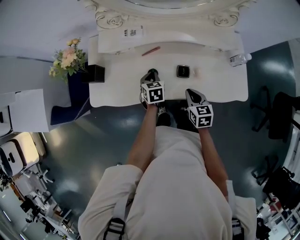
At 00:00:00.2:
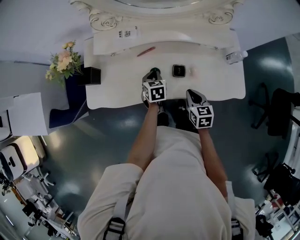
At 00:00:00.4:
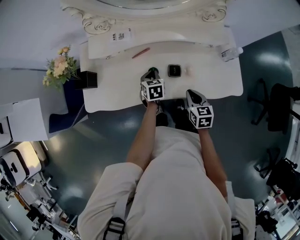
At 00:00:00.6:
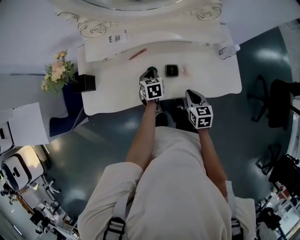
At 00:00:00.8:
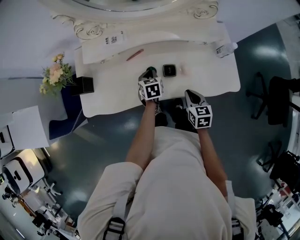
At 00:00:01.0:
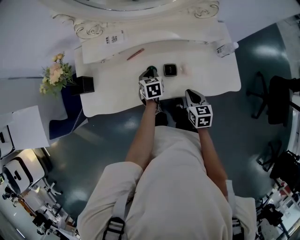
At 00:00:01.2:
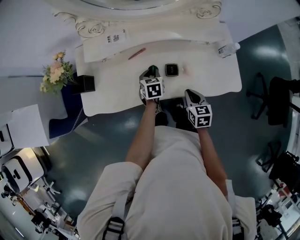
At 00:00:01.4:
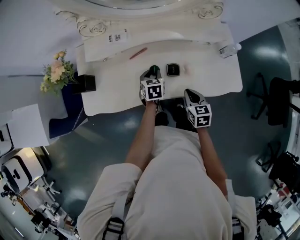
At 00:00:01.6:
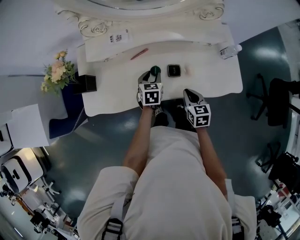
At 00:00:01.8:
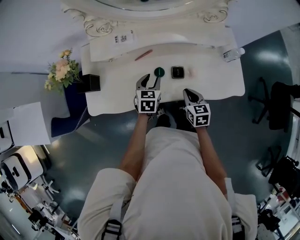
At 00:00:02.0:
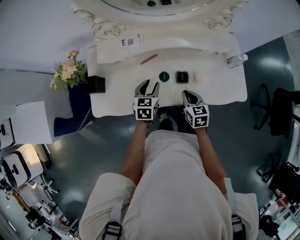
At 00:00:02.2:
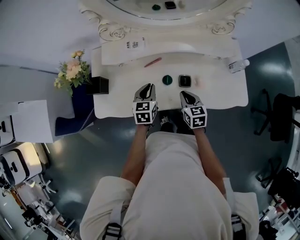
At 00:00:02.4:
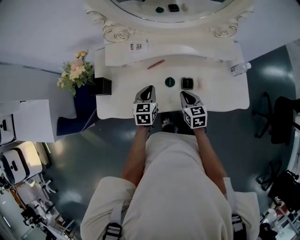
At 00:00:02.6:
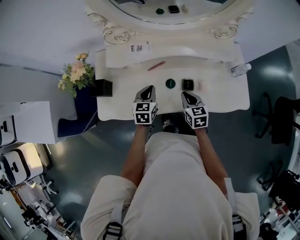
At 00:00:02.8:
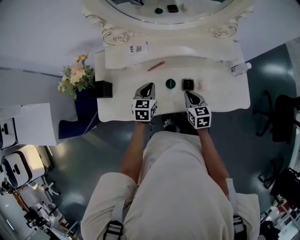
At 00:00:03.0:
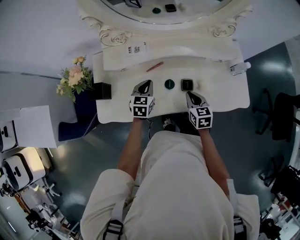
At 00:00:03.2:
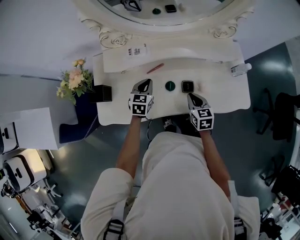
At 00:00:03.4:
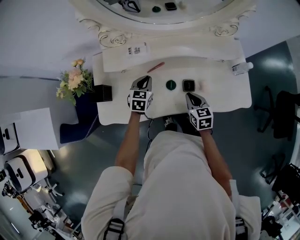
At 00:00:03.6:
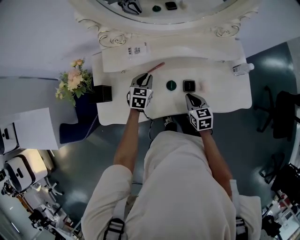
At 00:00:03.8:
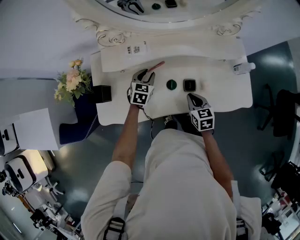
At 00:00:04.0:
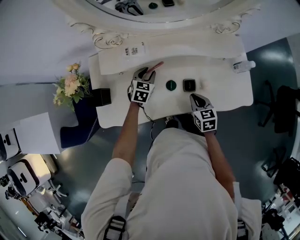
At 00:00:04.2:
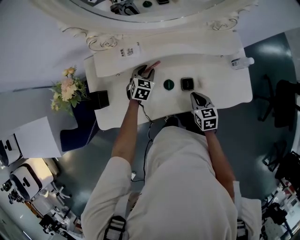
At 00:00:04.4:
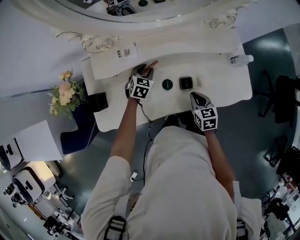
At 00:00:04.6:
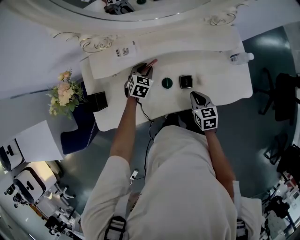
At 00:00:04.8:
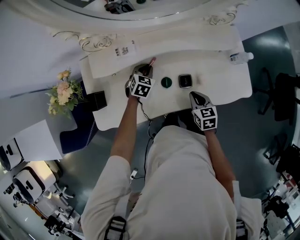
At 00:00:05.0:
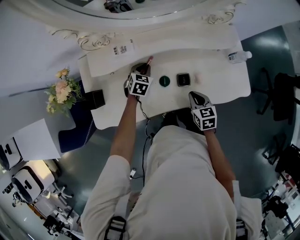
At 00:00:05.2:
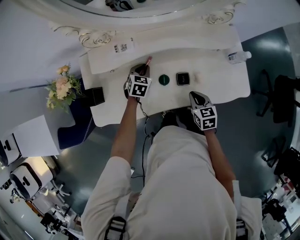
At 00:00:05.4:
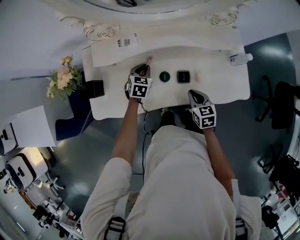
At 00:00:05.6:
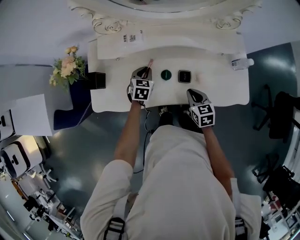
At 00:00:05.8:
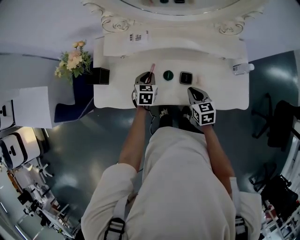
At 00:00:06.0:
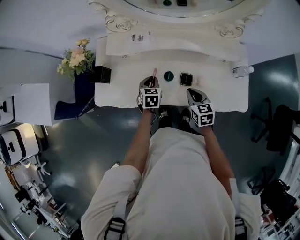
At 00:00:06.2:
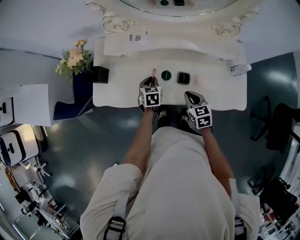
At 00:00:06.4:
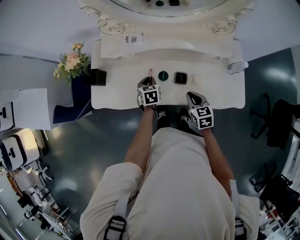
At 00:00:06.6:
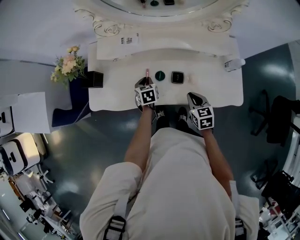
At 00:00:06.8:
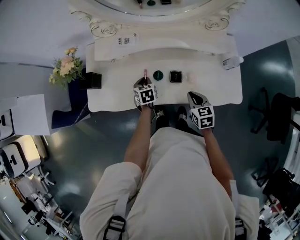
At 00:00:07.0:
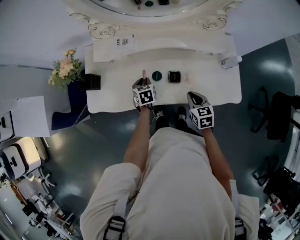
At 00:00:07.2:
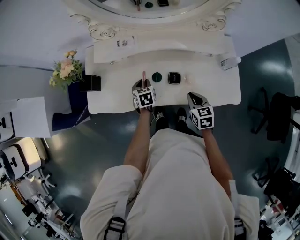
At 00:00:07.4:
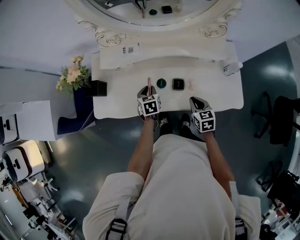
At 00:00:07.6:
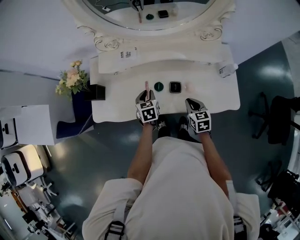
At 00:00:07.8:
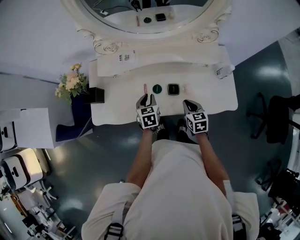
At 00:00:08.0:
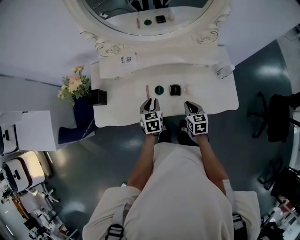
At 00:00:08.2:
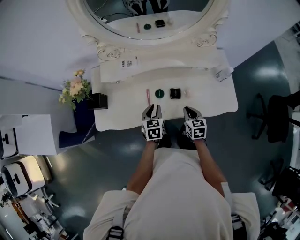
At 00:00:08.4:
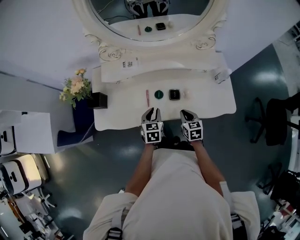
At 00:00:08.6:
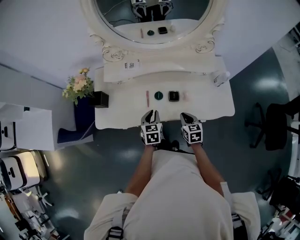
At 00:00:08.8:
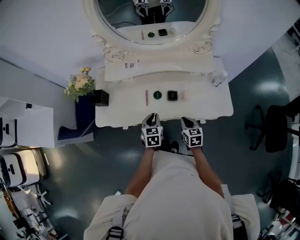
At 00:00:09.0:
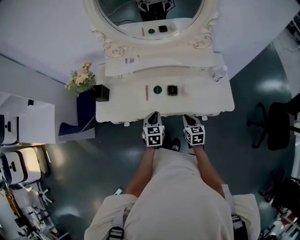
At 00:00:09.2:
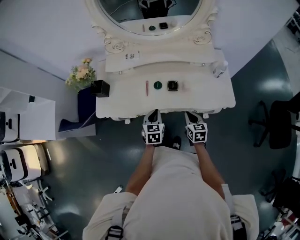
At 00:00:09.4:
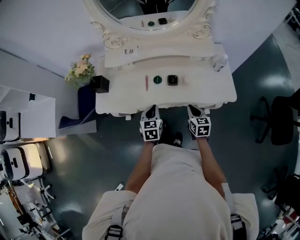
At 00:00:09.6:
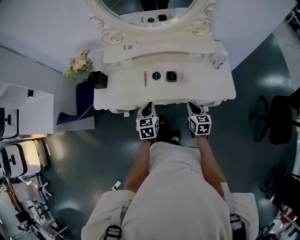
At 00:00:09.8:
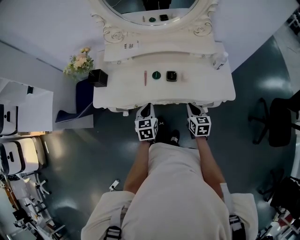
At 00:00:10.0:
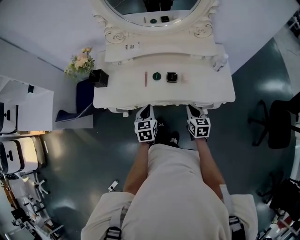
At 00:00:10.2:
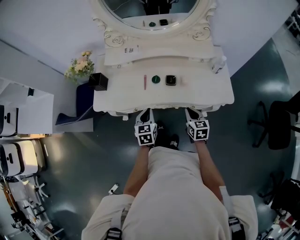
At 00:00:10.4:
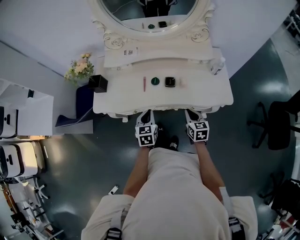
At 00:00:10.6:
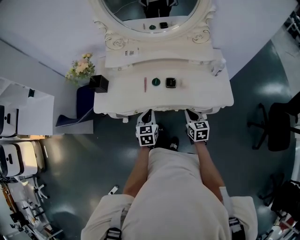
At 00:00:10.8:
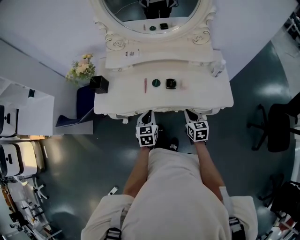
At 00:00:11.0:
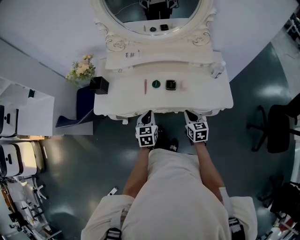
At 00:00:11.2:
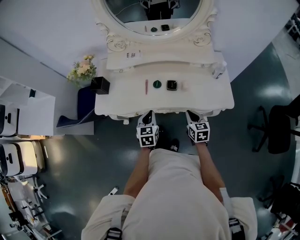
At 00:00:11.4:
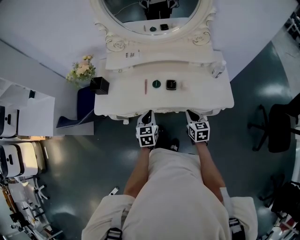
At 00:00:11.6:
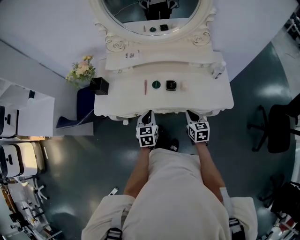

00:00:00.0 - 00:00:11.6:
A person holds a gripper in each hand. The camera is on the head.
00:00:00.0 - 00:00:01.4: The left gripper travels to the right by roughly 5 cm.
00:00:01.4 - 00:00:02.8: The right gripper travels to the left and forward by roughly 10 cm, while the left gripper moves to the left and upward, about 10 cm.
00:00:02.8 - 00:00:04.4: The left gripper heads forward and downward, covering approximately 15 cm, rotates about 30 degrees, and opens up. The right gripper changes place by approximately 5 cm.
00:00:04.4 - 00:00:05.8: The left gripper heads backward, covering roughly 10 cm, and changes its angle by approximately 30 degrees.
00:00:05.8 - 00:00:07.2: The right gripper shifts by some 5 cm.
00:00:07.2 - 00:00:08.8: The left gripper shifts approximately 15 cm backward and upward. Meanwhile the right gripper moves backward, some 5 cm.
00:00:08.8 - 00:00:10.2: The grippers both shift backward by approximately 5 cm.
00:00:10.2 - 00:00:11.6: There are only small adjustments of the grippers.

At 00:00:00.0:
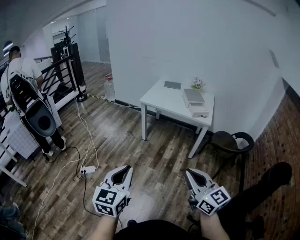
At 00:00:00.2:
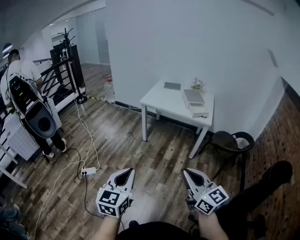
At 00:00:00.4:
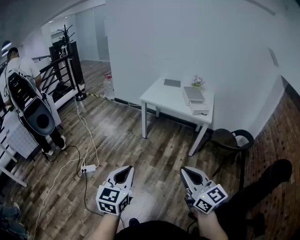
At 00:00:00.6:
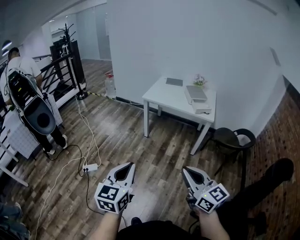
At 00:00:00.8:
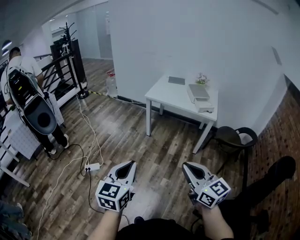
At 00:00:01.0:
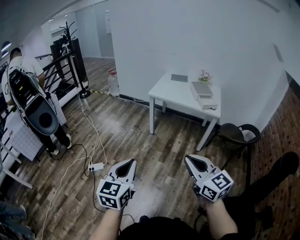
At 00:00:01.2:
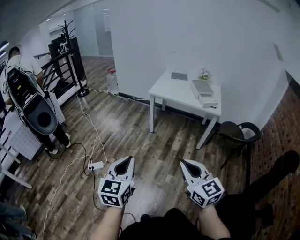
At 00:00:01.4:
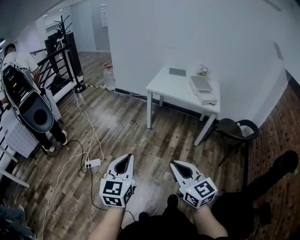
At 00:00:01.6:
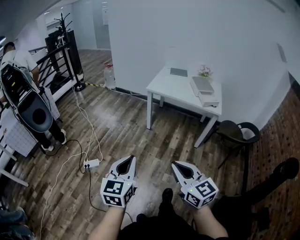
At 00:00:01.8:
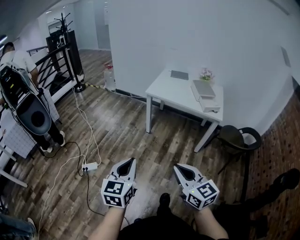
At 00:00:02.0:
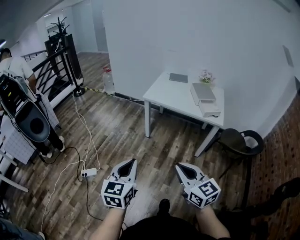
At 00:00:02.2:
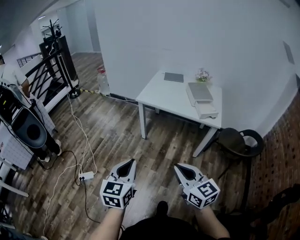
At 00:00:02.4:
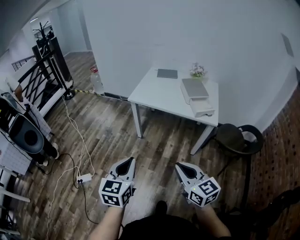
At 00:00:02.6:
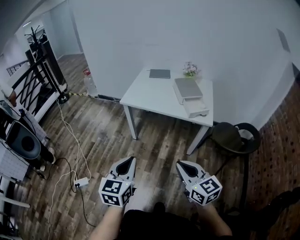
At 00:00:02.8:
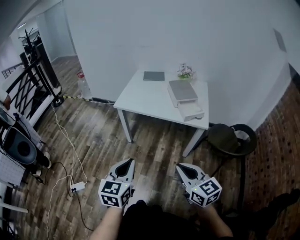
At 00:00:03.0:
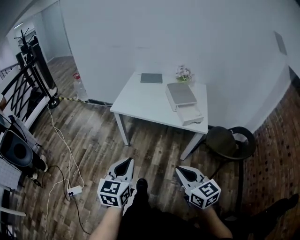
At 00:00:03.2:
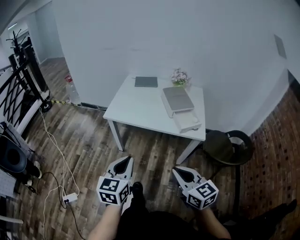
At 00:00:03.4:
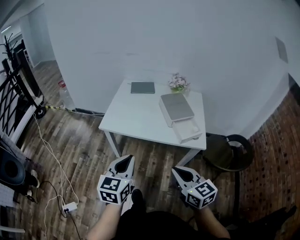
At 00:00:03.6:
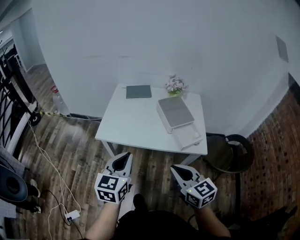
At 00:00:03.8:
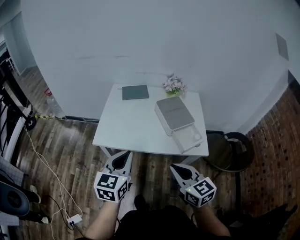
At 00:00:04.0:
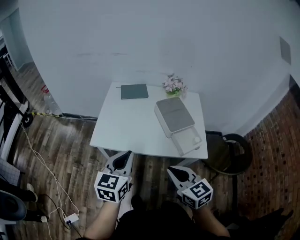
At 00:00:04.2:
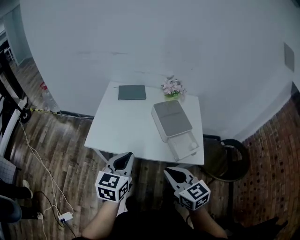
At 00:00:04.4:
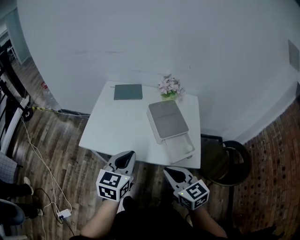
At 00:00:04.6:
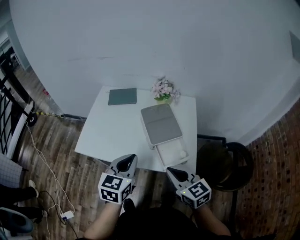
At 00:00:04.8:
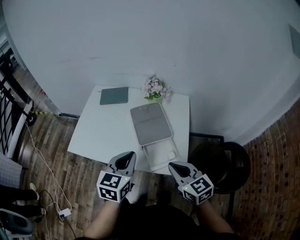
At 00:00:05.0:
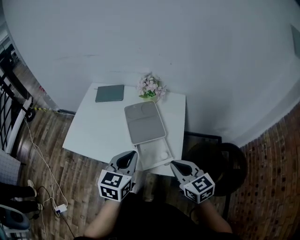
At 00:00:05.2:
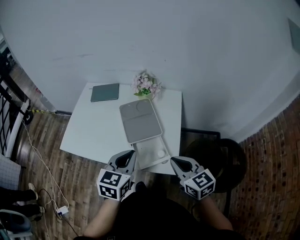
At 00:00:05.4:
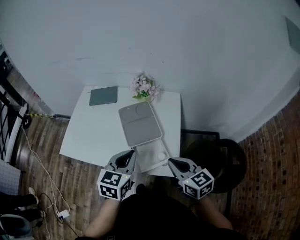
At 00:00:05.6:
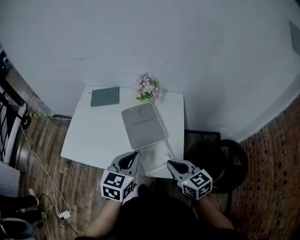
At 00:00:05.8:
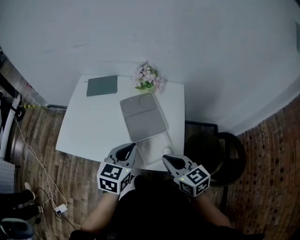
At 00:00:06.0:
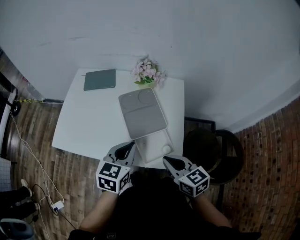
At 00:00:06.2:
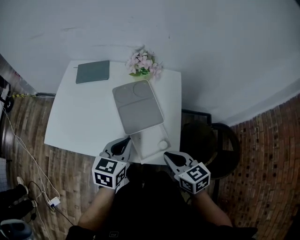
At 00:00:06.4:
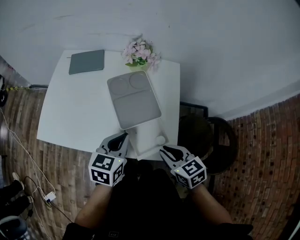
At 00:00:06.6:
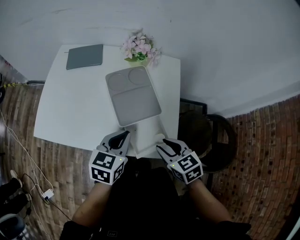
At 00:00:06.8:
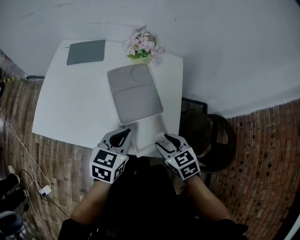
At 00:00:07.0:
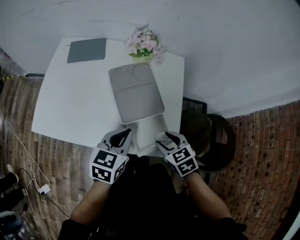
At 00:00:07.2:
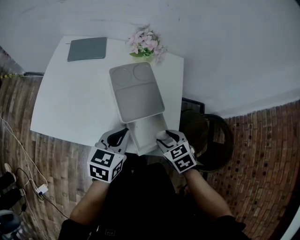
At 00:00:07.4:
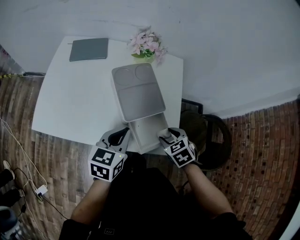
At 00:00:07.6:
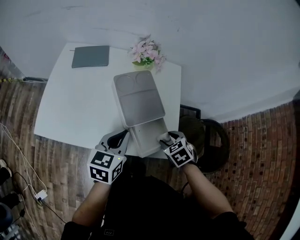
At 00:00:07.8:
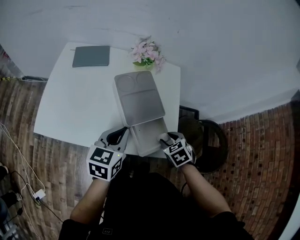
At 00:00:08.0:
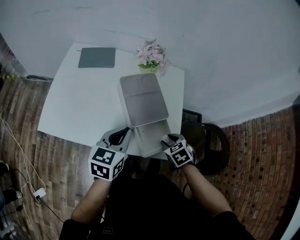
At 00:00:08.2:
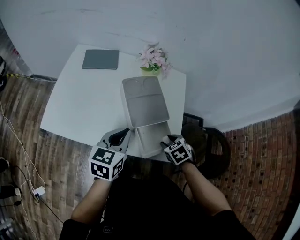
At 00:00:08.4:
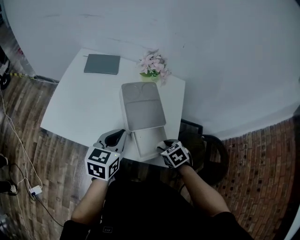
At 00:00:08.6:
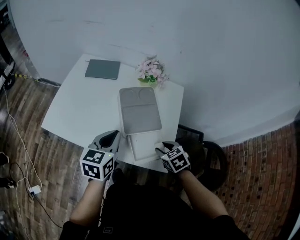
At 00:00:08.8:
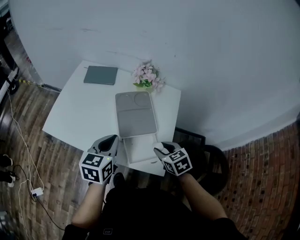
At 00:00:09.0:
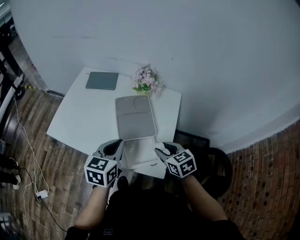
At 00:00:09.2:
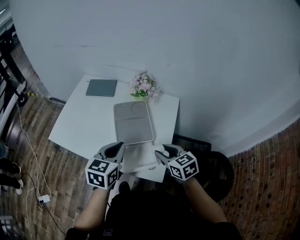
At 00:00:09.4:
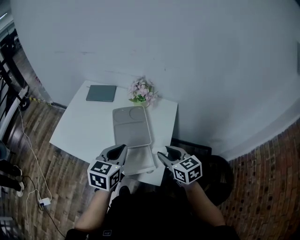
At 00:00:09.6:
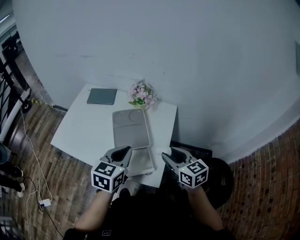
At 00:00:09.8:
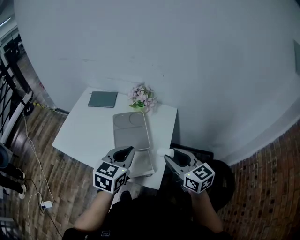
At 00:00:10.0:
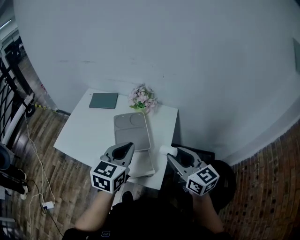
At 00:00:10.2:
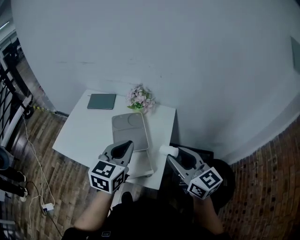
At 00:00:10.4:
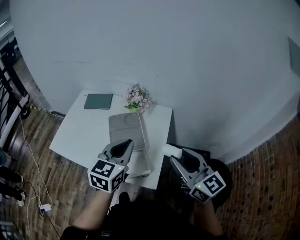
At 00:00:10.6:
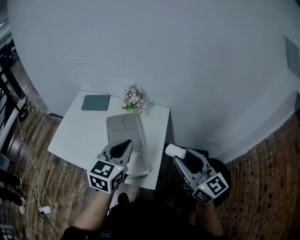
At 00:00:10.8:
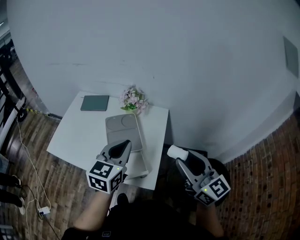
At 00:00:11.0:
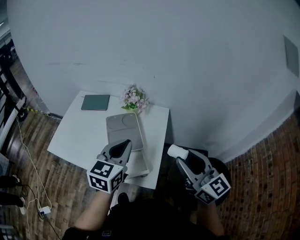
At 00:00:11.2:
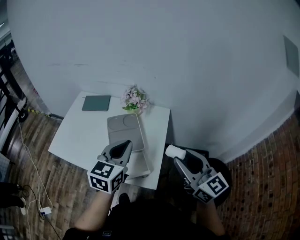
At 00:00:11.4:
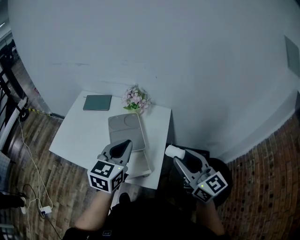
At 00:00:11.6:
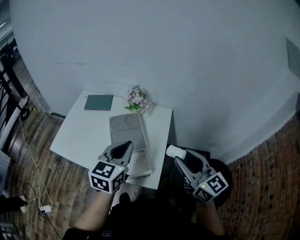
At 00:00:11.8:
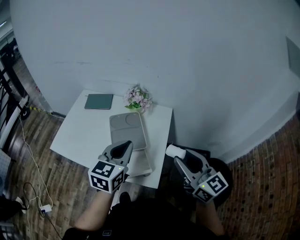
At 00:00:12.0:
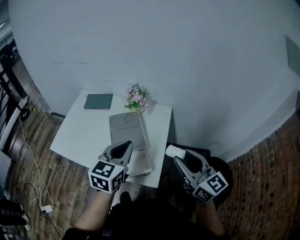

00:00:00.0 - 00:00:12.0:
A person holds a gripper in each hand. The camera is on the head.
00:00:00.0 - 00:00:01.6: The left gripper heads to the left, forward and downward, covering approximately 15 cm, while the right gripper heads to the left and forward, covering roughly 15 cm.
00:00:01.6 - 00:00:03.0: The two grippers go some 40 cm forward and to the right.
00:00:03.0 - 00:00:04.4: The two grippers go some 35 cm forward.
00:00:04.4 - 00:00:06.0: Both grippers move to the right and forward, about 20 cm.
00:00:06.0 - 00:00:07.6: The right gripper travels downward and forward by approximately 15 cm, points its fingers about 40 degrees further downward, and opens its fingers; the left gripper shifts by some 5 cm.
00:00:07.6 - 00:00:09.0: The right gripper shifts roughly 10 cm upward, and rotates roughly 30 degrees, while the left gripper heads upward, covering roughly 5 cm.
00:00:09.0 - 00:00:10.4: The left gripper is displaced upward and to the right by roughly 15 cm; the right gripper moves upward, roughly 20 cm, and angles its fingers upward, by roughly 40 degrees.
00:00:10.4 - 00:00:12.0: There are only small adjustments of the grippers.
